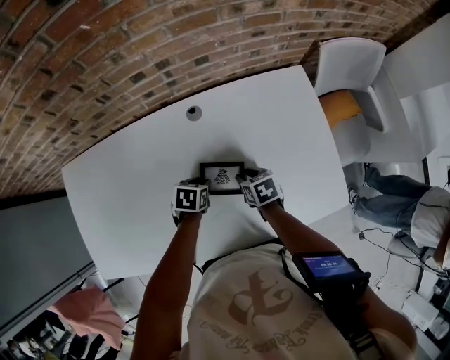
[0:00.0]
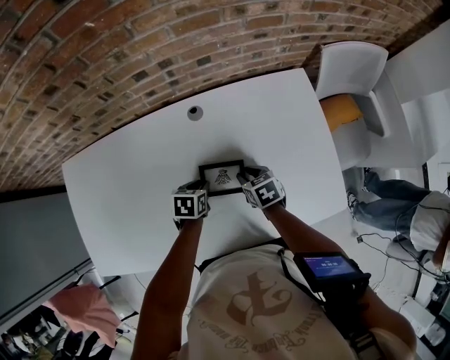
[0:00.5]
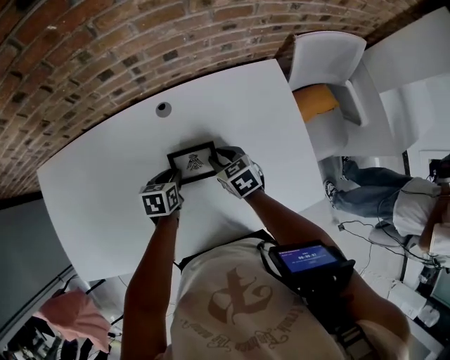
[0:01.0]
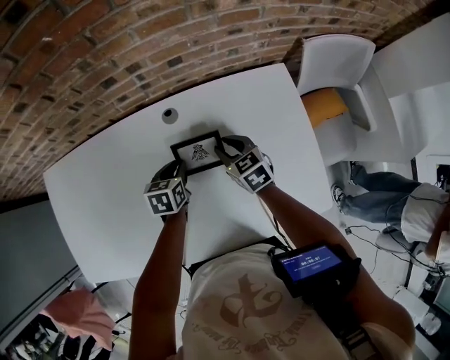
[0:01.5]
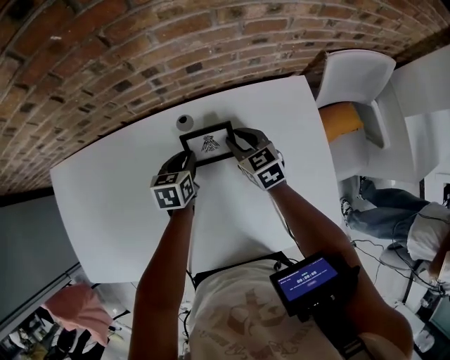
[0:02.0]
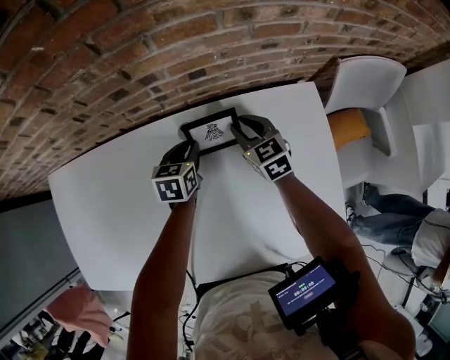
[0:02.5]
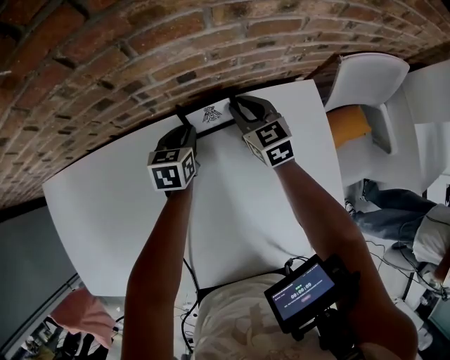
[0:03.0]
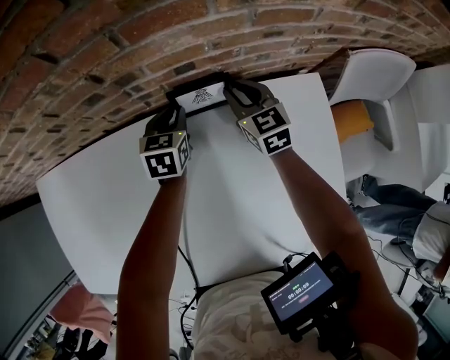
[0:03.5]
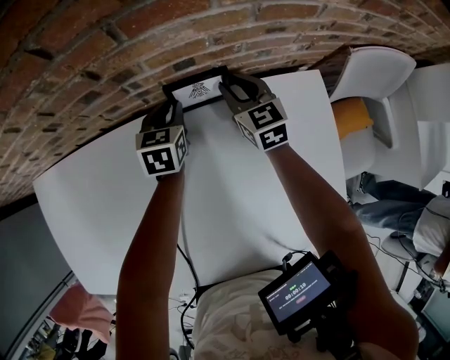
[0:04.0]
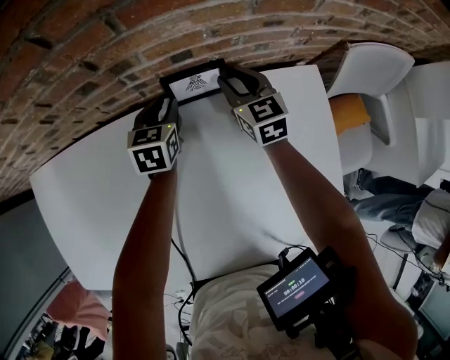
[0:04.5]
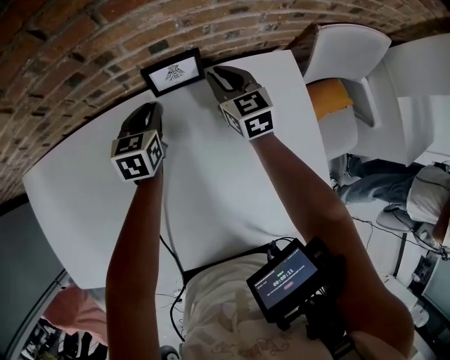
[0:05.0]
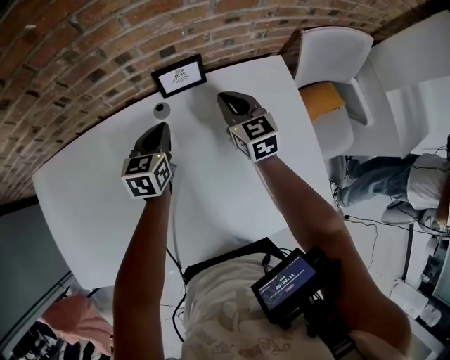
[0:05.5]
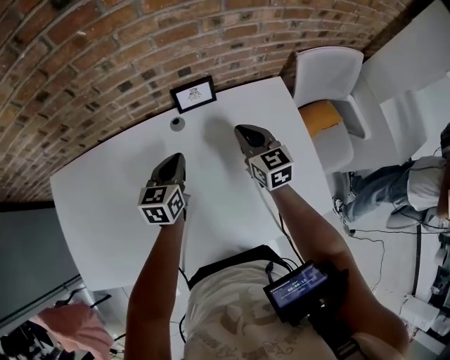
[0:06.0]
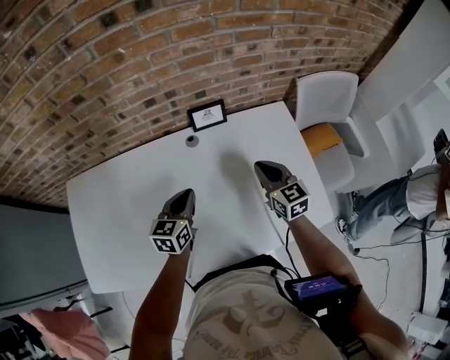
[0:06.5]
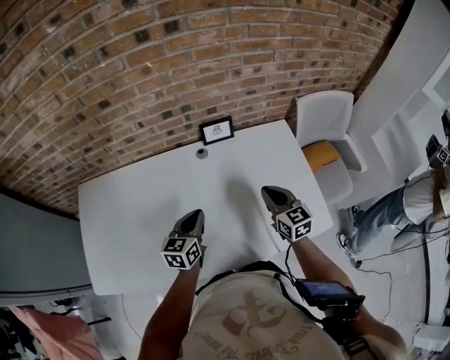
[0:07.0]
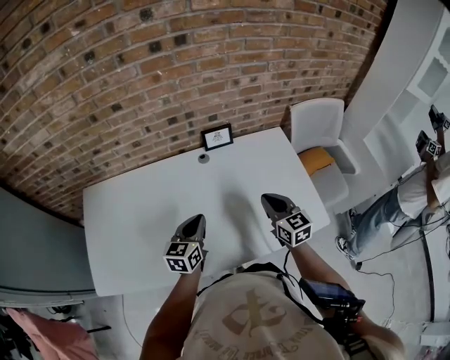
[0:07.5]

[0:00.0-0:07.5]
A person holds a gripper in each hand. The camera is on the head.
0:00.0 to 0:02.0: The two grippers go roughly 15 cm forward and upward. The left gripper changes its angle by approximately 30 degrees, while the right gripper swivels approximately 30 degrees.
0:02.0 to 0:04.0: The grippers both shift forward by about 15 cm.
0:04.0 to 0:05.5: The grippers both shift backward and upward by about 15 cm. The right gripper closes.
0:05.5 to 0:07.5: Both grippers travel together backward, some 30 cm.

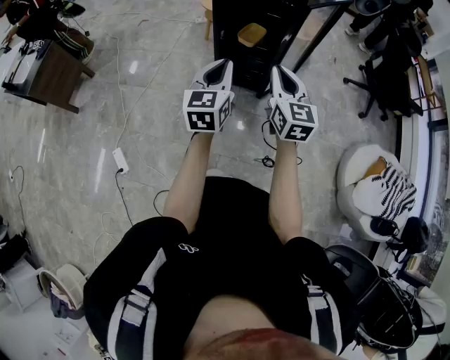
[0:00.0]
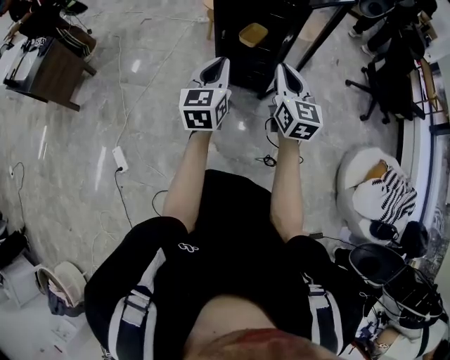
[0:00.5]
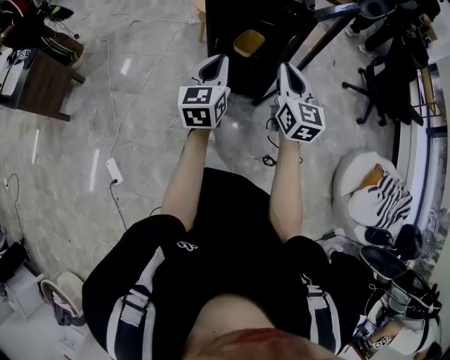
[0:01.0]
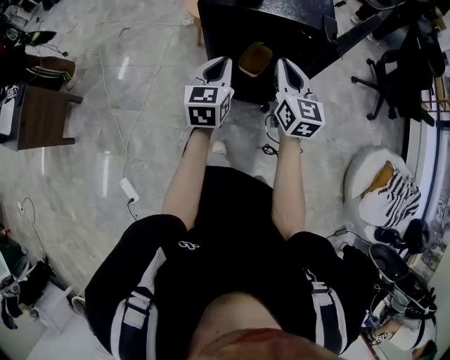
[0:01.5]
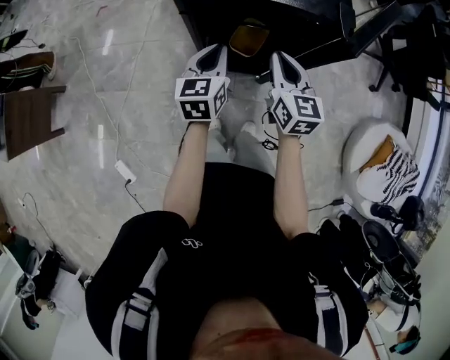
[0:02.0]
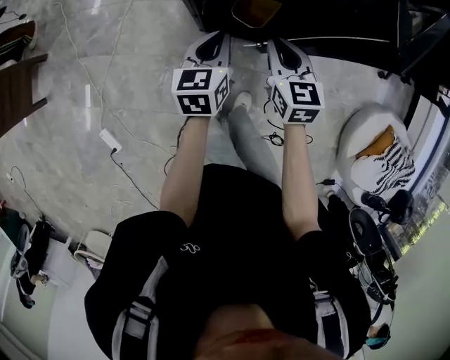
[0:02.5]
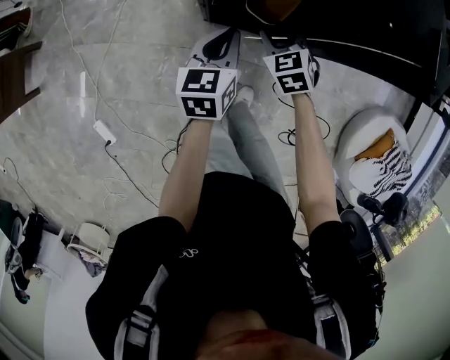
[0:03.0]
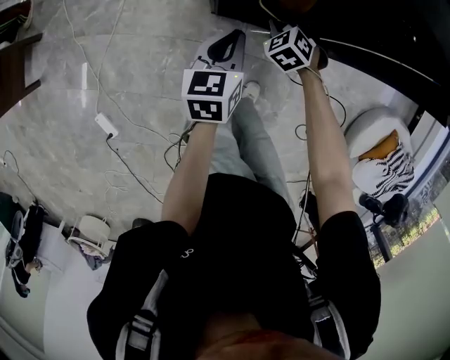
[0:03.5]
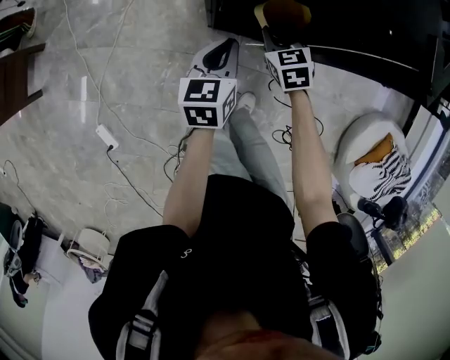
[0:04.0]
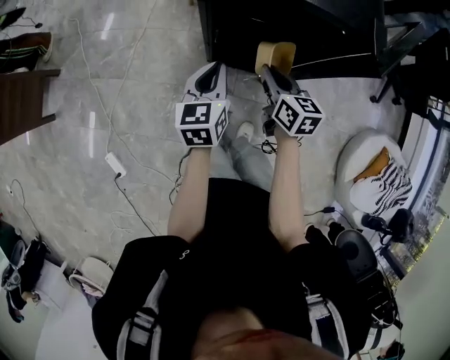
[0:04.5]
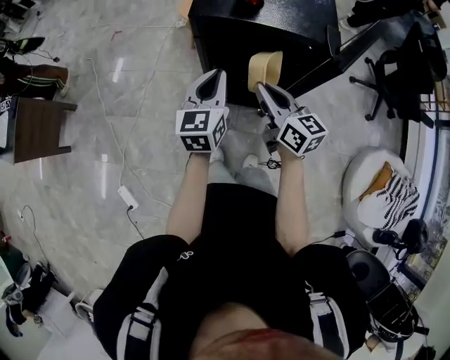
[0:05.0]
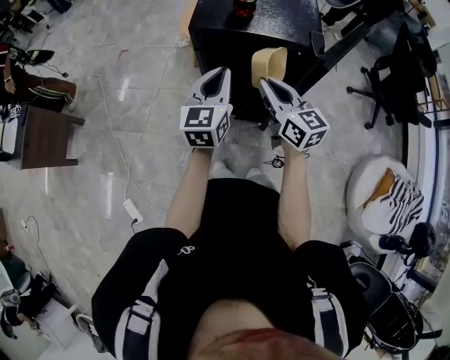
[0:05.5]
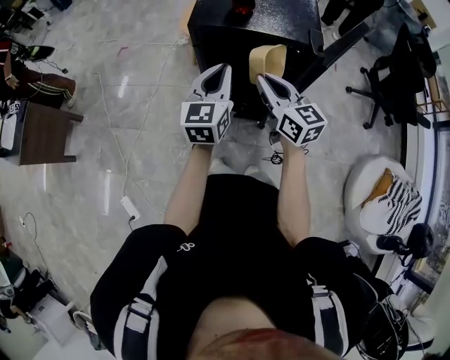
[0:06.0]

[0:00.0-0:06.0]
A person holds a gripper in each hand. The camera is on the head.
0:00.0 to 0:02.0: Both grippers move forward, approximately 35 cm.
0:02.0 to 0:04.0: The left gripper travels downward by about 15 cm. The right gripper heads downward, covering roughly 25 cm, swivels about 40 degrees, and opens, then closes once more.
0:04.0 to 0:06.0: Both grippers travel together upward, about 30 cm. The left gripper changes its angle by some 30 degrees. Meanwhile the right gripper angles its fingers upward, by about 40 degrees.

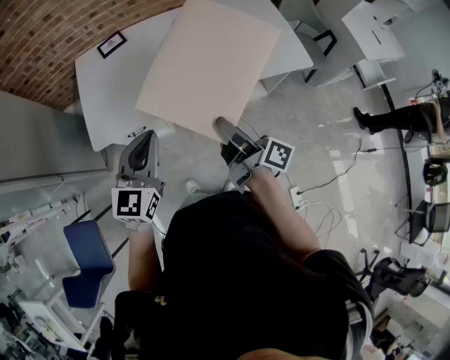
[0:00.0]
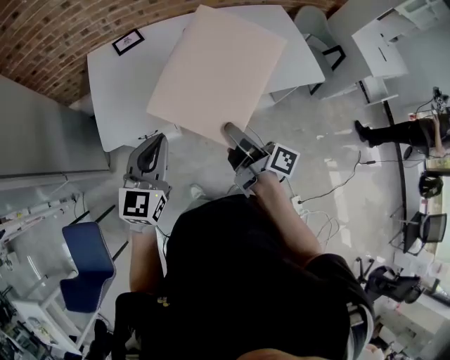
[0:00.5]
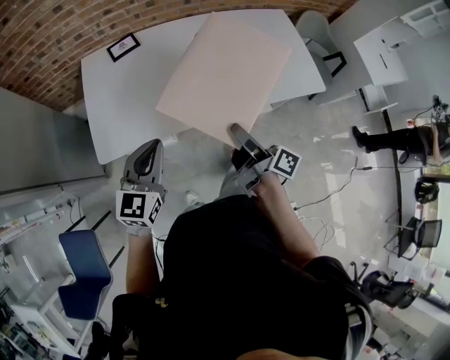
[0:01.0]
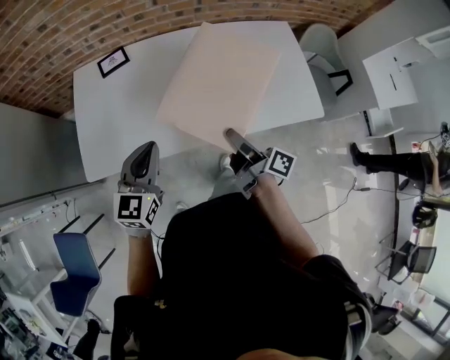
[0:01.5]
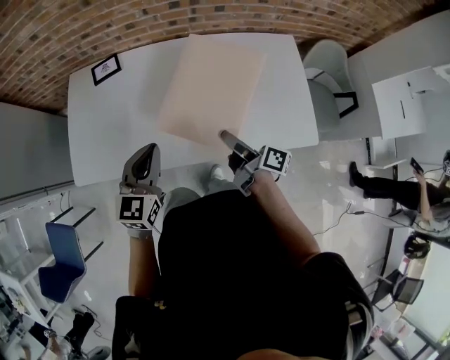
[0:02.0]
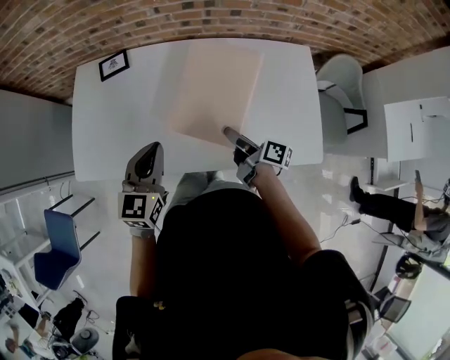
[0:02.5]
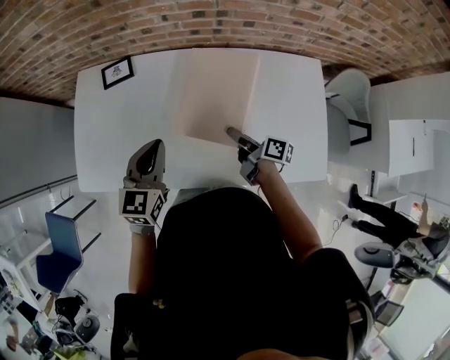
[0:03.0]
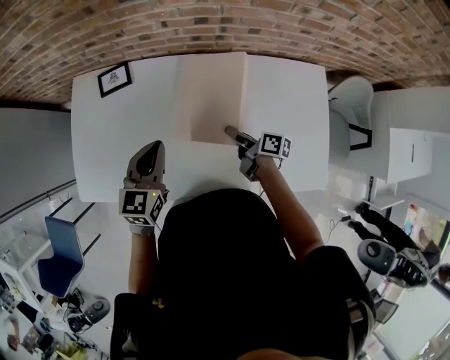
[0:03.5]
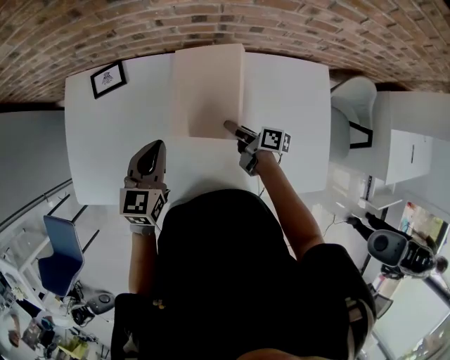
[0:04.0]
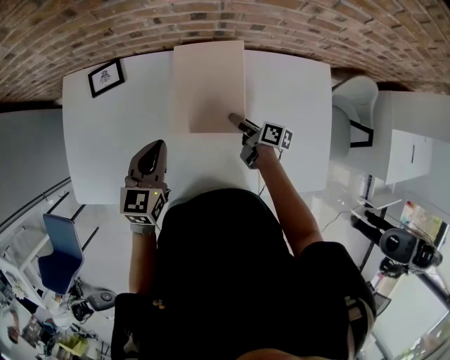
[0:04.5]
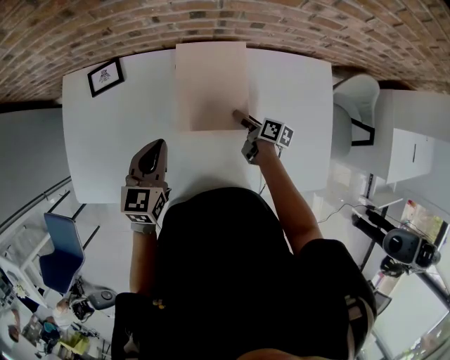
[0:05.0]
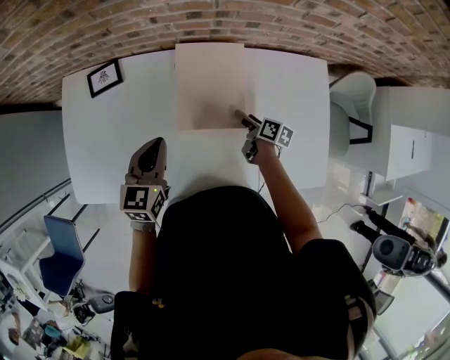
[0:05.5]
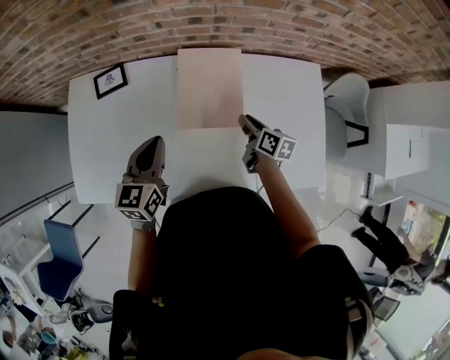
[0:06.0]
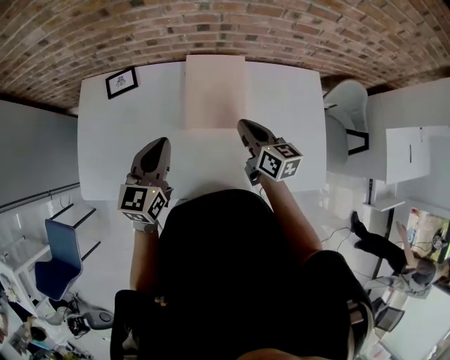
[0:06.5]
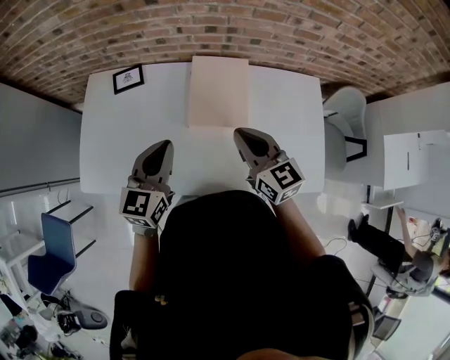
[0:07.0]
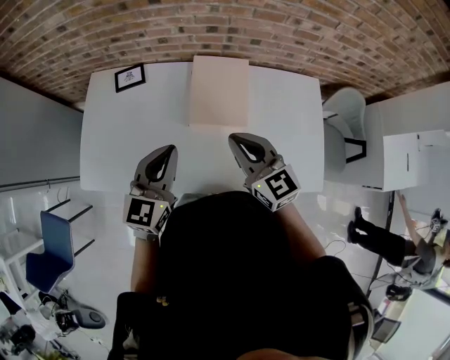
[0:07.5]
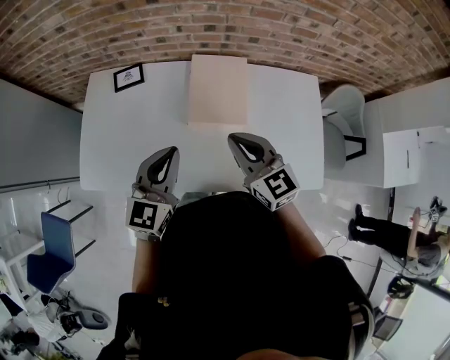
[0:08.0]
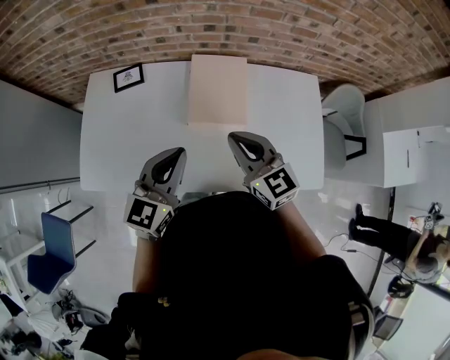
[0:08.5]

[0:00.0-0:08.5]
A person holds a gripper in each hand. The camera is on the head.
0:00.0 to 0:02.0: The left gripper is displaced forward and to the right by about 30 cm. The right gripper shifts about 35 cm forward, to the right and downward.
0:02.0 to 0:04.0: The right gripper travels forward and downward by roughly 25 cm, and rotates roughly 20 degrees. The left gripper goes roughly 20 cm forward.
0:04.0 to 0:06.5: The left gripper moves upward and backward, some 10 cm; the right gripper heads upward, covering some 15 cm, rotates around the line of its fingers by approximately 40 degrees, counterclockwise from behind, and closes.
0:06.5 to 0:08.5: The left gripper moves backward and upward, roughly 10 cm; the right gripper is displaced upward, backward and to the left by some 15 cm, and swivels approximately 30 degrees.

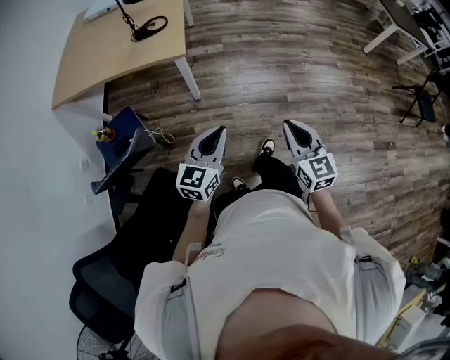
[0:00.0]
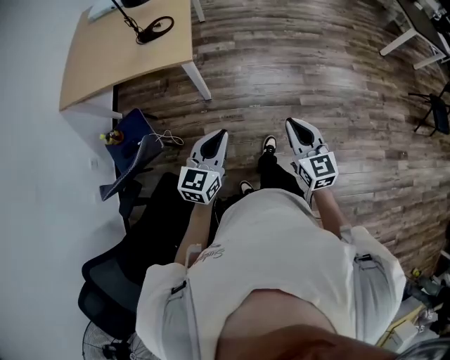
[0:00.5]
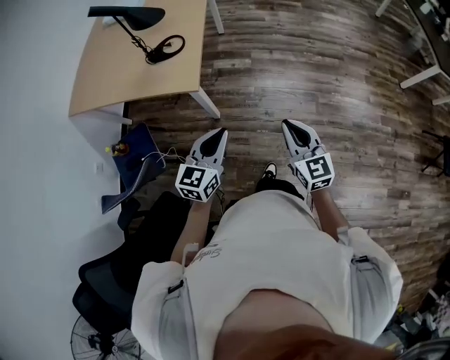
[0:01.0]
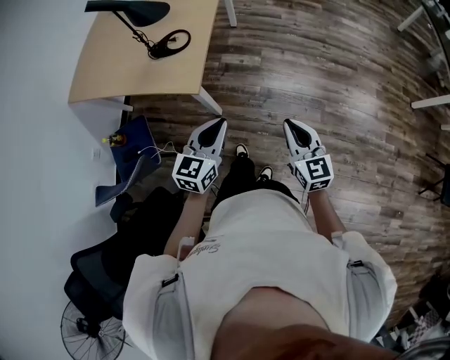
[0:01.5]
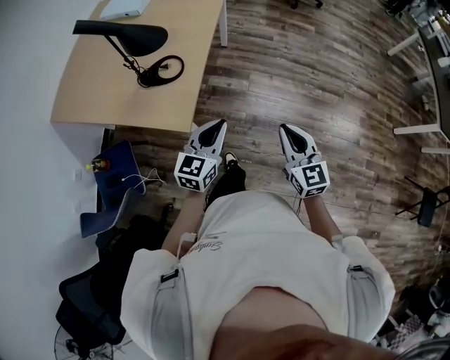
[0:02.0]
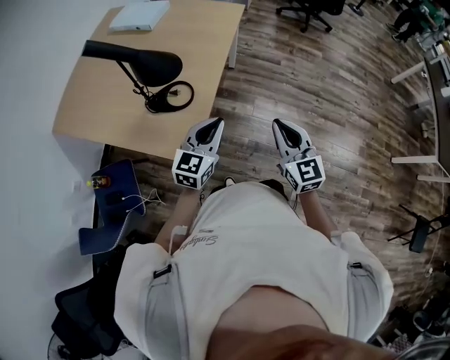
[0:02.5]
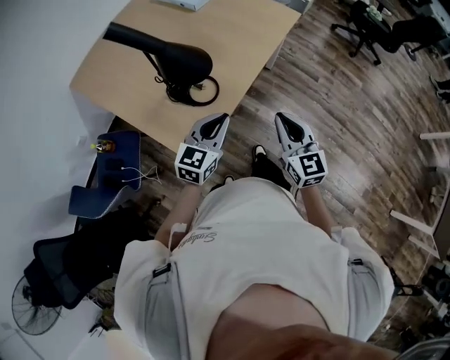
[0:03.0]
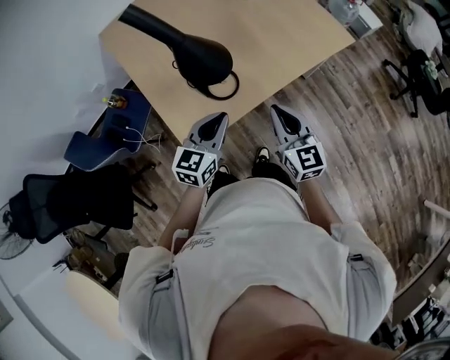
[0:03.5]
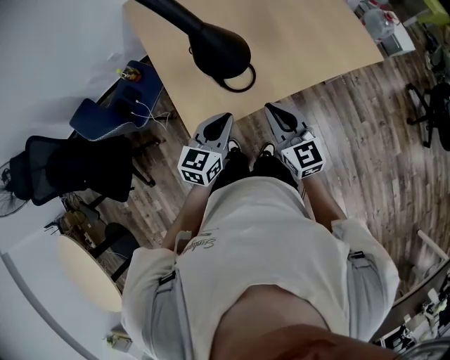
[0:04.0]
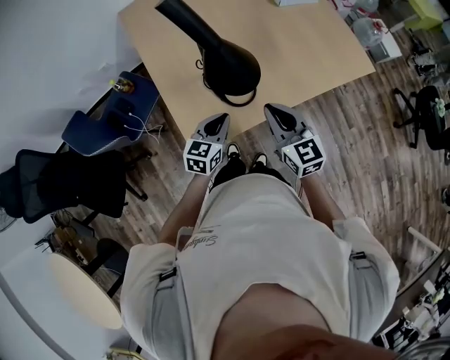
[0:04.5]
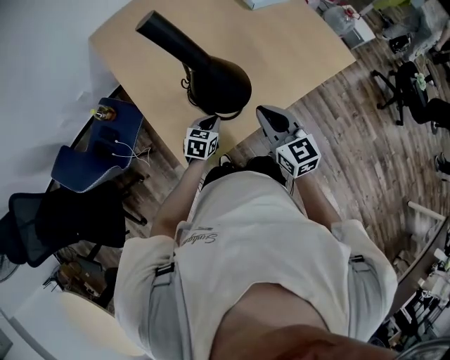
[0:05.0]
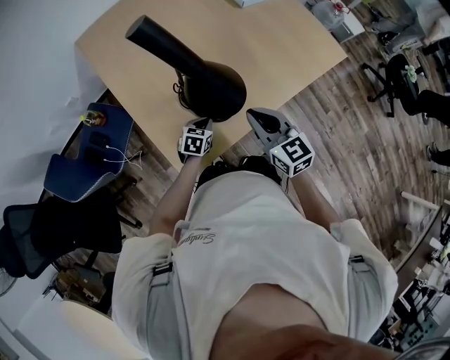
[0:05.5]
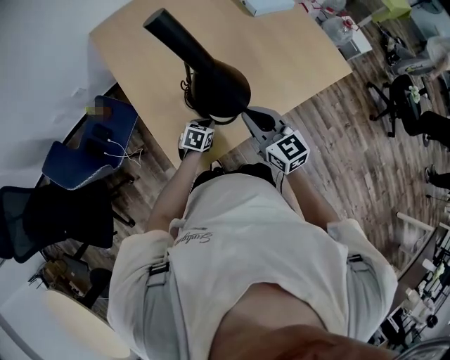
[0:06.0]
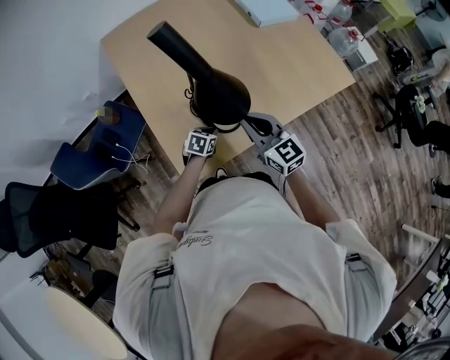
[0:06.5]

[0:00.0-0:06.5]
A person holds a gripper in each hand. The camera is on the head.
0:00.0 to 0:02.0: The pair of grippers is taken forward, approximately 50 cm.
0:02.0 to 0:04.5: The left gripper moves roughly 30 cm, and swivels about 50 degrees. The right gripper changes place by approximately 40 cm, and rotates approximately 60 degrees.
0:04.5 to 0:06.5: The left gripper travels downward and forward by some 20 cm, and turns by some 30 degrees. The right gripper moves about 5 cm.
